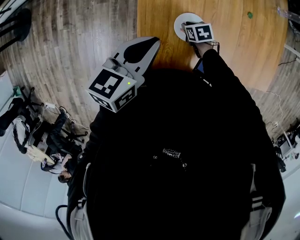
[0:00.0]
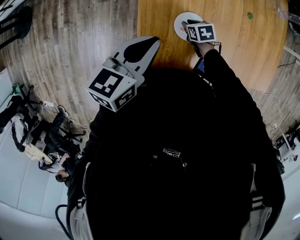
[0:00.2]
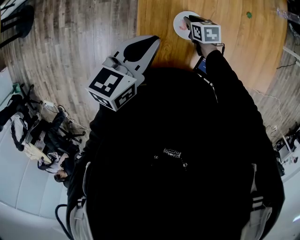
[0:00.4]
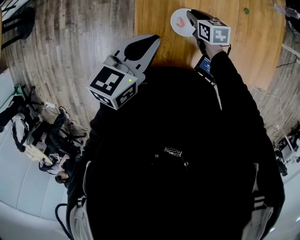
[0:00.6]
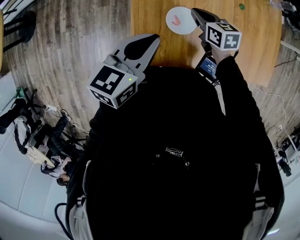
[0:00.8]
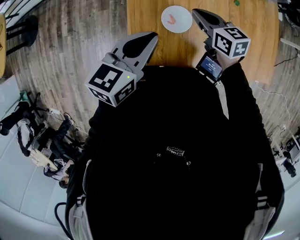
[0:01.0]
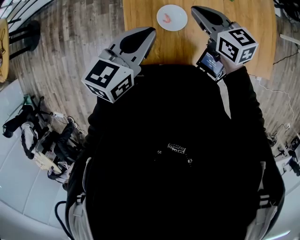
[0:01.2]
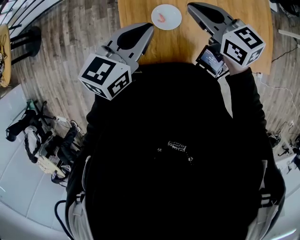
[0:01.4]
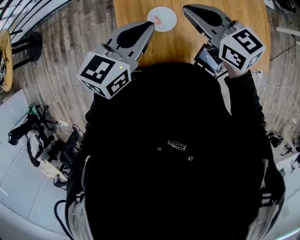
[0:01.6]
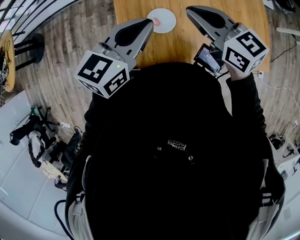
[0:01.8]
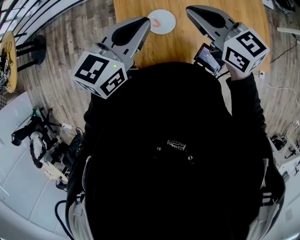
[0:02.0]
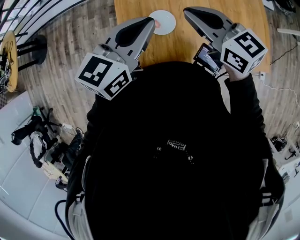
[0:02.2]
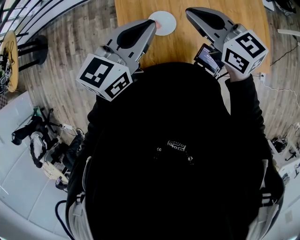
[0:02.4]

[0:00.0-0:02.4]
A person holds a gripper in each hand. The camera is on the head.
0:00.0 to 0:01.2: The right gripper heads upward, covering approximately 30 cm, and tilts its fingers roughly 40 degrees upward. The left gripper goes some 5 cm to the right.
0:01.2 to 0:02.4: The right gripper travels upward by about 10 cm. The left gripper shifts about 10 cm upward and to the right.

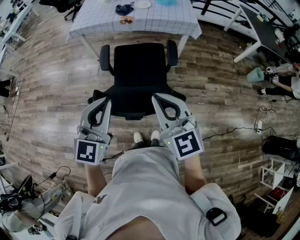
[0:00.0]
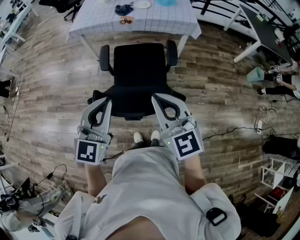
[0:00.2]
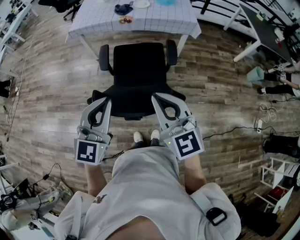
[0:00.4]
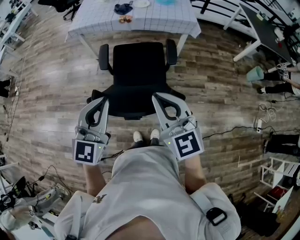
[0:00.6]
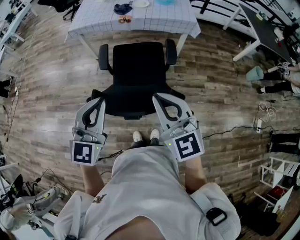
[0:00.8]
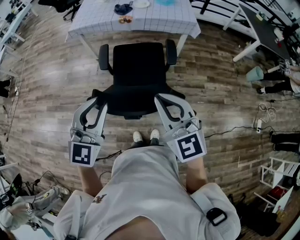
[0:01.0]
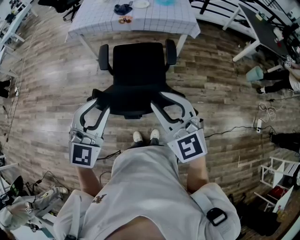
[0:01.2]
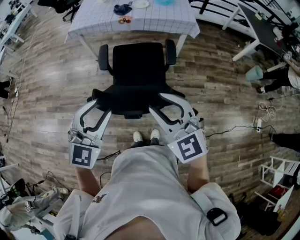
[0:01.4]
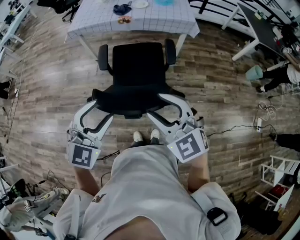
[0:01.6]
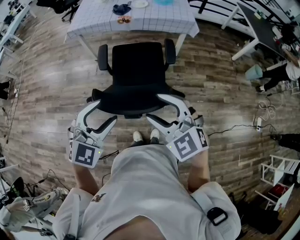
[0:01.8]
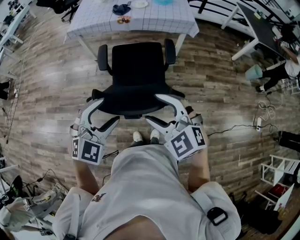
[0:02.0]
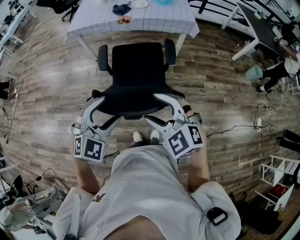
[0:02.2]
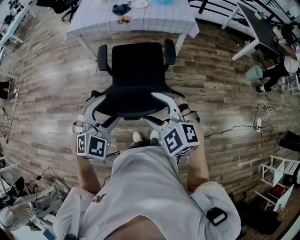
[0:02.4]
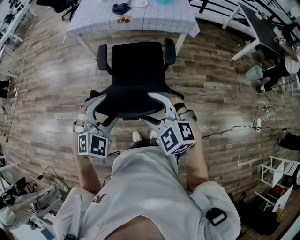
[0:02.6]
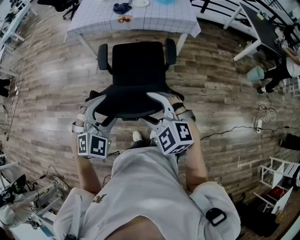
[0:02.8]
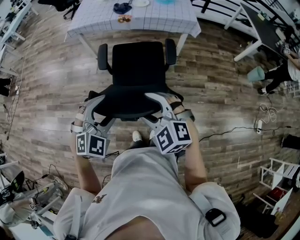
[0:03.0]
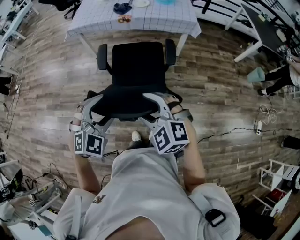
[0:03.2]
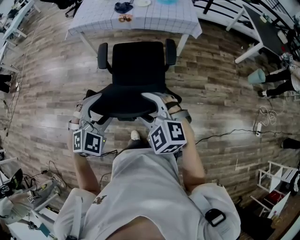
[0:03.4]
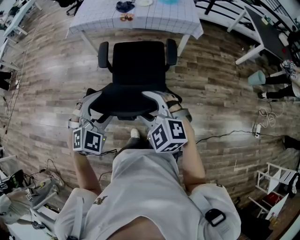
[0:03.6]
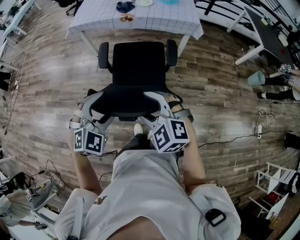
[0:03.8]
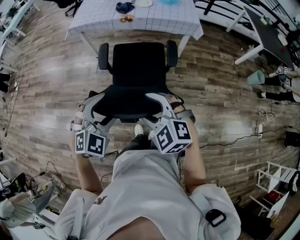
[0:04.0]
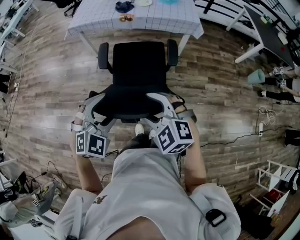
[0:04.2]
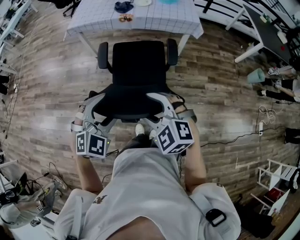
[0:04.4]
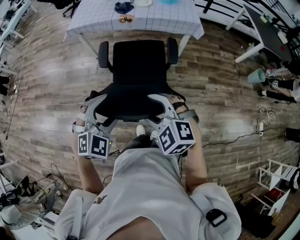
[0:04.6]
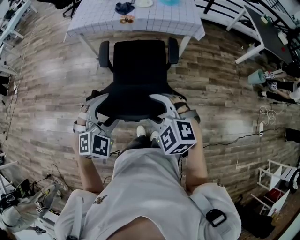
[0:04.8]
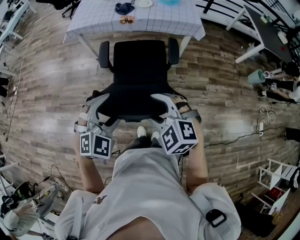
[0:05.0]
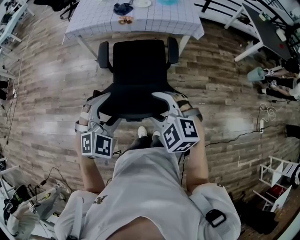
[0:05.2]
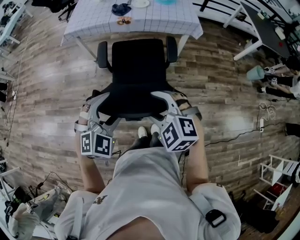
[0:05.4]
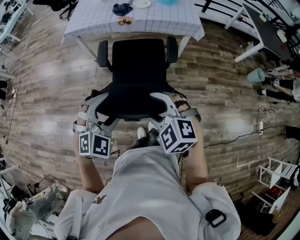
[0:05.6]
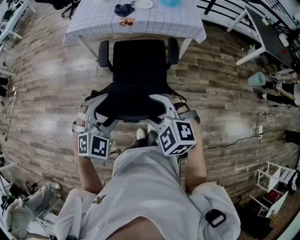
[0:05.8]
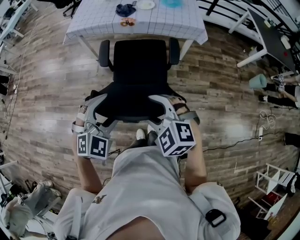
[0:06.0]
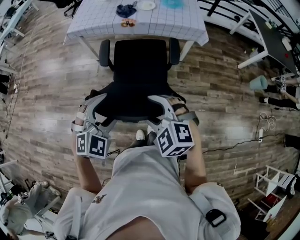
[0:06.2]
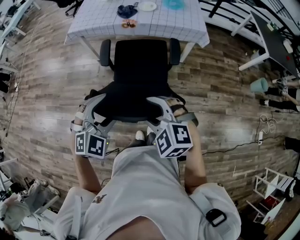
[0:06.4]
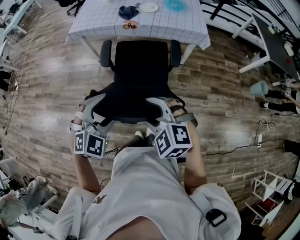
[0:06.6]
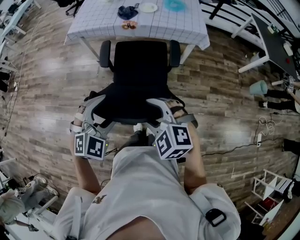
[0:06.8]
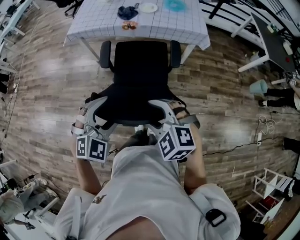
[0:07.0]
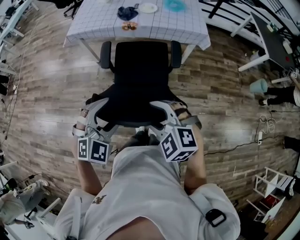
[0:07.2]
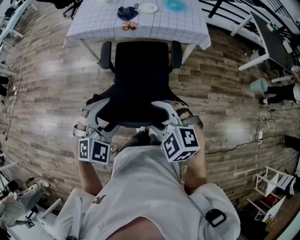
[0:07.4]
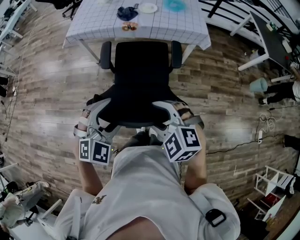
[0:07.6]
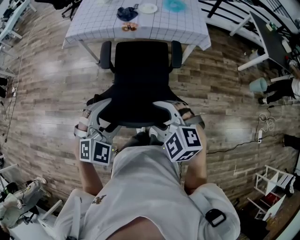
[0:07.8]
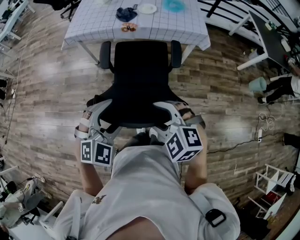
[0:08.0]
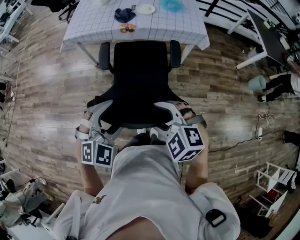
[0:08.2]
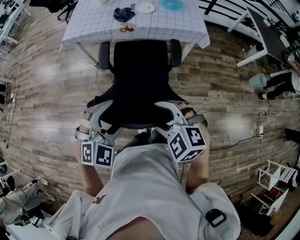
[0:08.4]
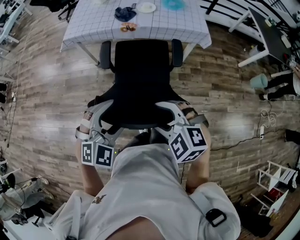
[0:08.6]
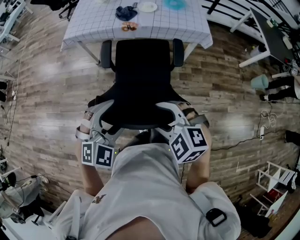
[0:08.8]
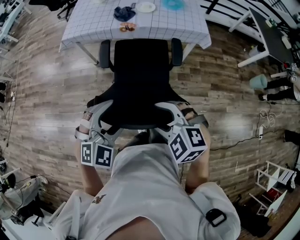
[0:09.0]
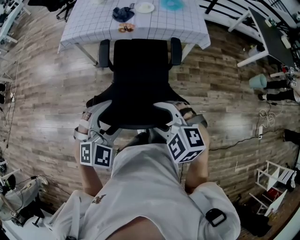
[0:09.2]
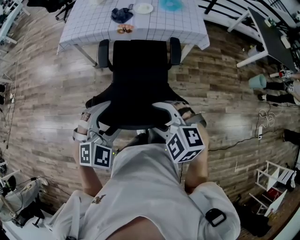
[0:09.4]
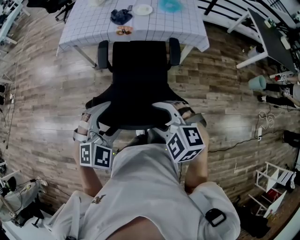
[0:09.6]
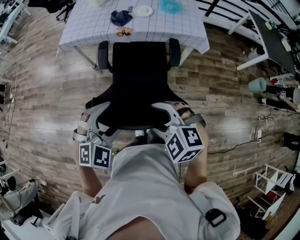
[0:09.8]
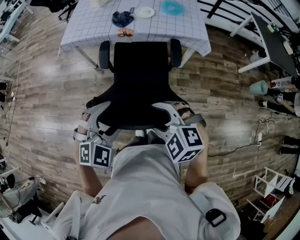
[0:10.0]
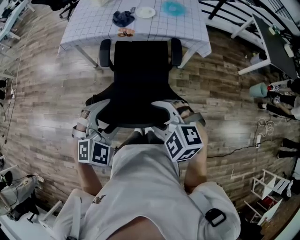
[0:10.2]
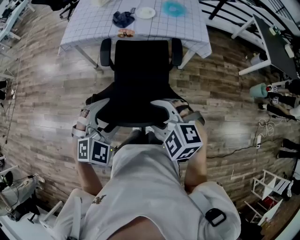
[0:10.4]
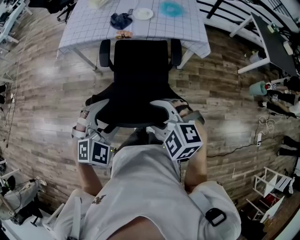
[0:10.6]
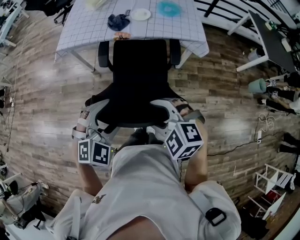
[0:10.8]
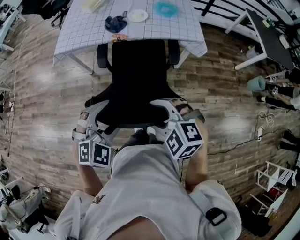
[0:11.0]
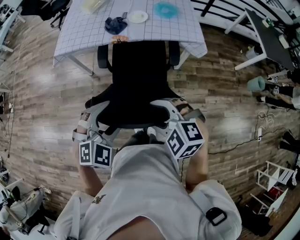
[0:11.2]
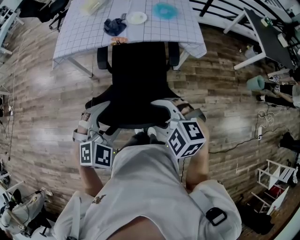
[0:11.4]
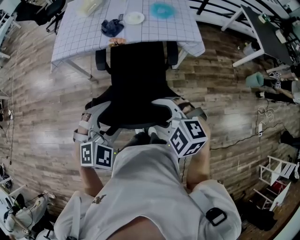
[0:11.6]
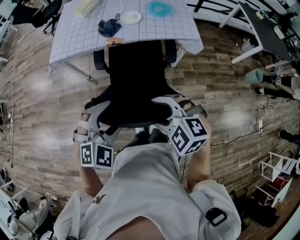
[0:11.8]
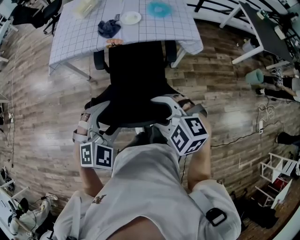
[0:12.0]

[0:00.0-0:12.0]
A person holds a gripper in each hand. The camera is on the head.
0:00.0 to 0:01.6: The left gripper rotates approximately 20 degrees, and opens up. Meanwhile the right gripper rotates about 20 degrees, and opens.
0:01.6 to 0:03.0: Both grippers move downward, roughly 10 cm. The right gripper changes its angle by roughly 20 degrees. Meanwhile the left gripper rotates about 20 degrees.
0:03.0 to 0:04.4: There are only small adjustments of the grippers.
0:04.4 to 0:06.0: The two grippers go approximately 10 cm forward.
0:06.0 to 0:07.6: There are only small adjustments of the grippers.
0:07.6 to 0:09.0: There are only small adjustments of the grippers.
0:09.0 to 0:10.4: Both grippers move forward, about 5 cm.
0:10.4 to 0:12.0: Both grippers travel together forward, about 5 cm.

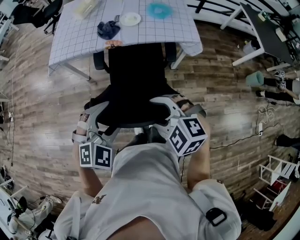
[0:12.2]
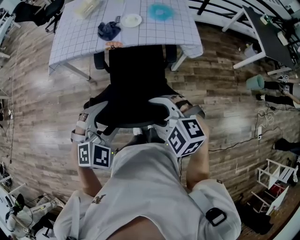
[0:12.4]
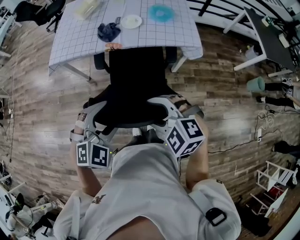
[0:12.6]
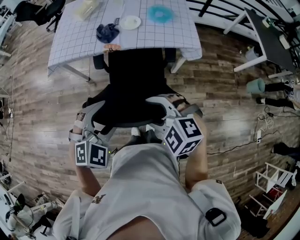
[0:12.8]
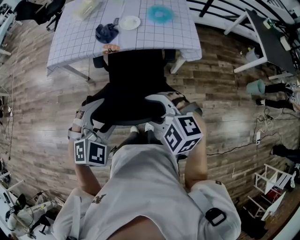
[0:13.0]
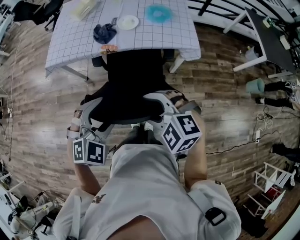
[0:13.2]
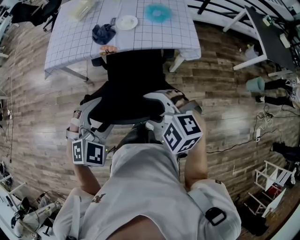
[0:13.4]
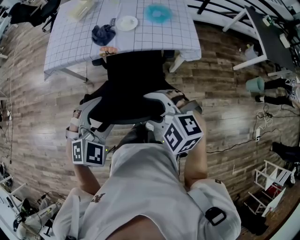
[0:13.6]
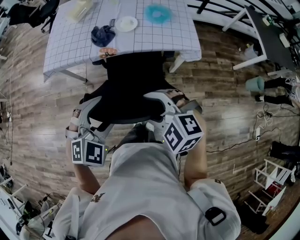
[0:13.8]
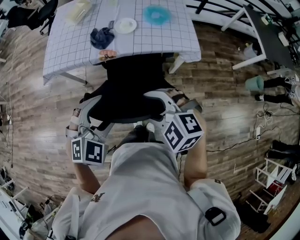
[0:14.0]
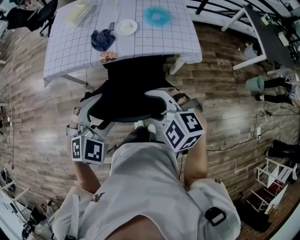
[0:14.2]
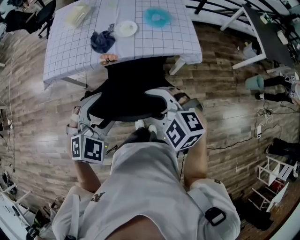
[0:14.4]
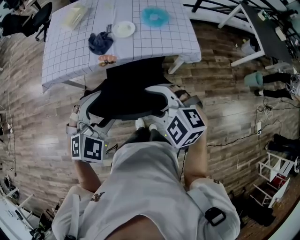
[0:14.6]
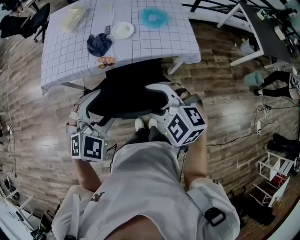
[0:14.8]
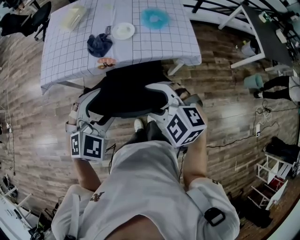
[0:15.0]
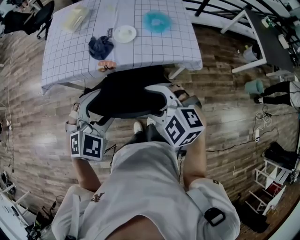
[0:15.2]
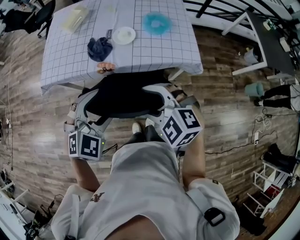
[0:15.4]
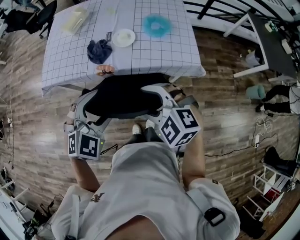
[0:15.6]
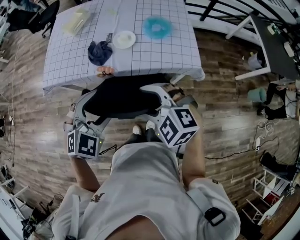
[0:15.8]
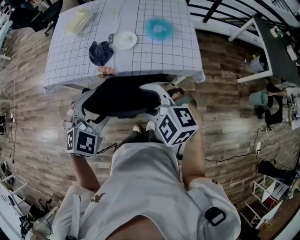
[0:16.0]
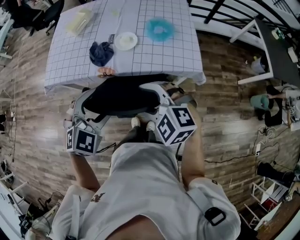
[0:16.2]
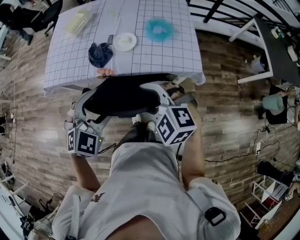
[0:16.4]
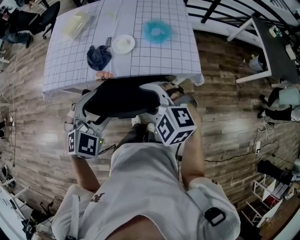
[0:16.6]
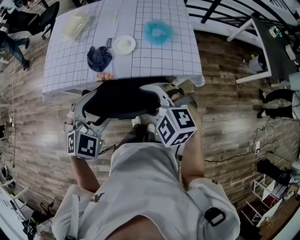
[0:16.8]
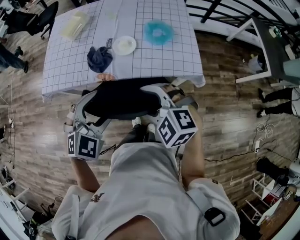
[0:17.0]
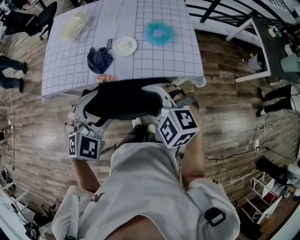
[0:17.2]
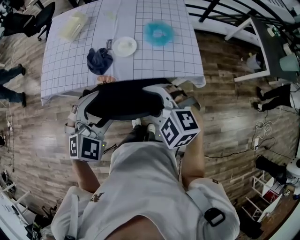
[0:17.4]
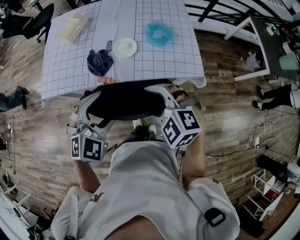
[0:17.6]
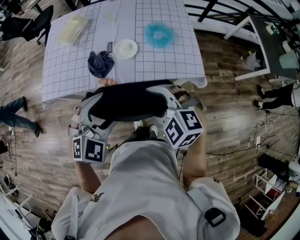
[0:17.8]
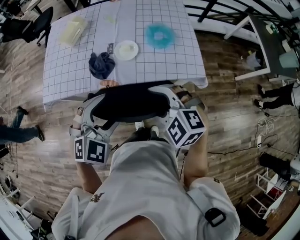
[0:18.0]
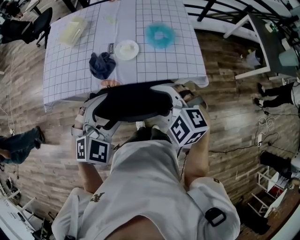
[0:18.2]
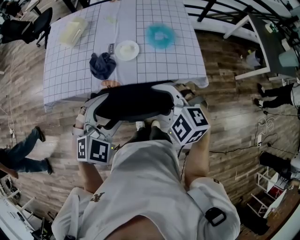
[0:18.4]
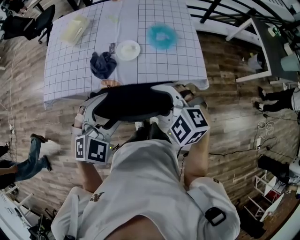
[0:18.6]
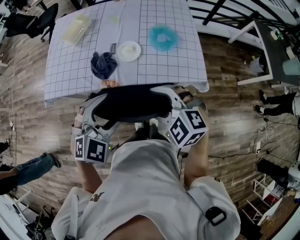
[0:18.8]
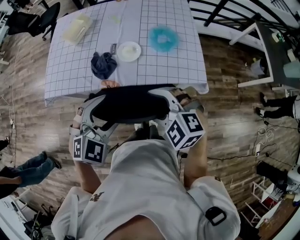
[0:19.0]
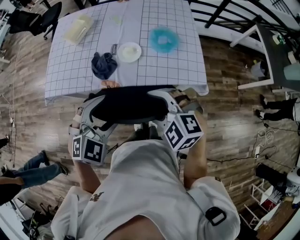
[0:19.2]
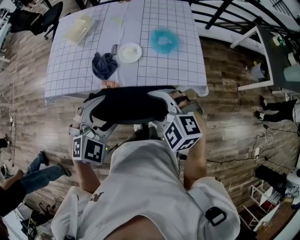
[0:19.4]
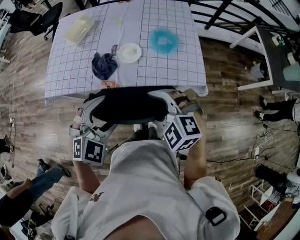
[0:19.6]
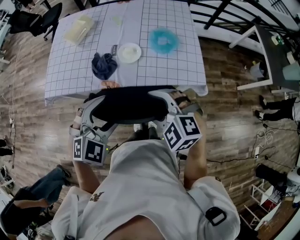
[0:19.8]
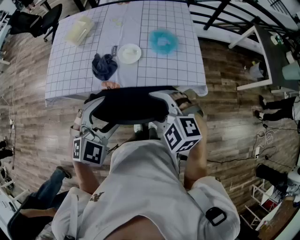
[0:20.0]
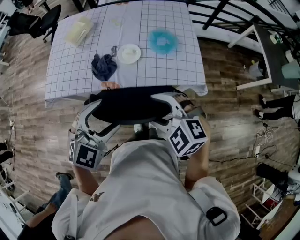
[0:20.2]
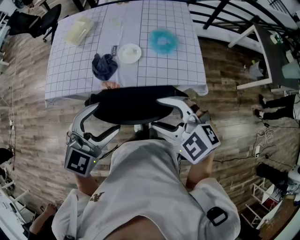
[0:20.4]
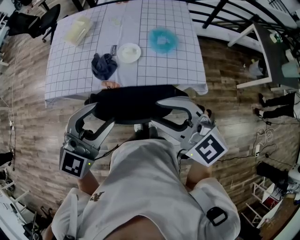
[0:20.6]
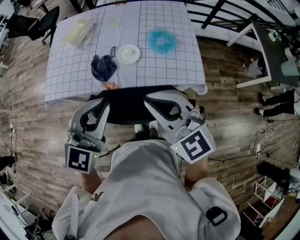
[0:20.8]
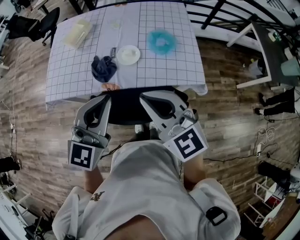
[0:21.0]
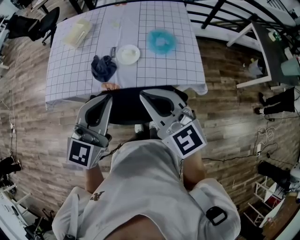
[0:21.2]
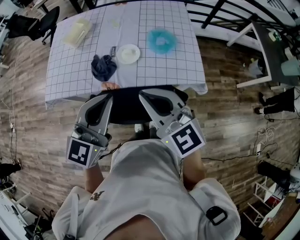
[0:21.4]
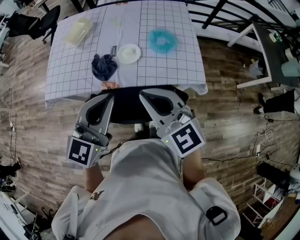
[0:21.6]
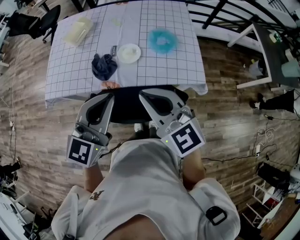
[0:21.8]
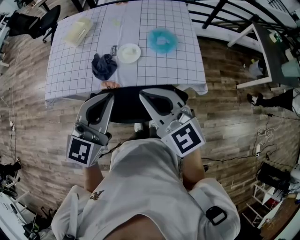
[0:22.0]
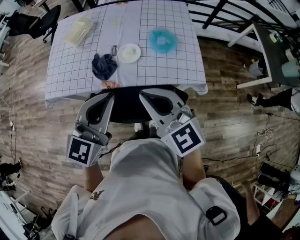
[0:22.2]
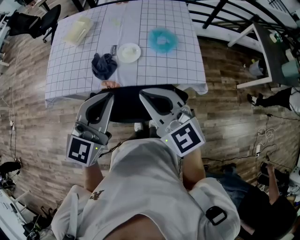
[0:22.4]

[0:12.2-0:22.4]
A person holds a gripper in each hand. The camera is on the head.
0:12.2 to 0:13.6: Both grippers travel together forward, approximately 10 cm.
0:13.6 to 0:15.2: Both grippers move forward, some 15 cm.
0:15.2 to 0:16.6: The right gripper travels forward and to the right by roughly 10 cm; the left gripper shifts approximately 5 cm forward.
0:16.6 to 0:19.4: The grippers make only small movements.
0:19.4 to 0:21.0: Both grippers travel together upward, about 10 cm. The right gripper tilts its fingers approximately 40 degrees upward, and closes up. Meanwhile the left gripper tips its fingers upward by some 30 degrees, and closes its fingers.
0:21.0 to 0:22.4: The grippers stay close to where they were, moving slightly.
